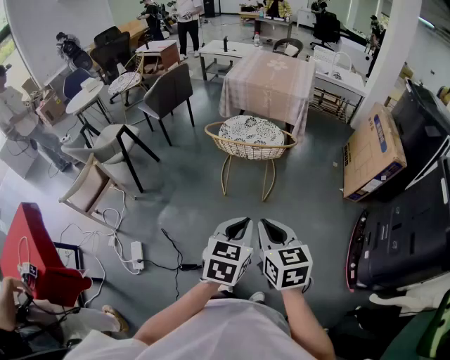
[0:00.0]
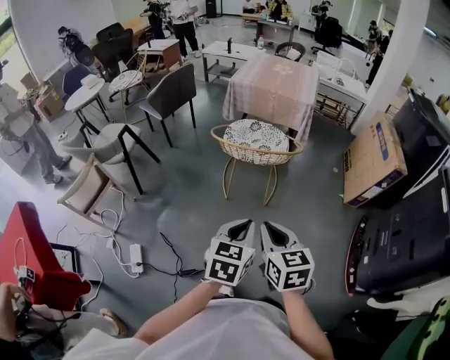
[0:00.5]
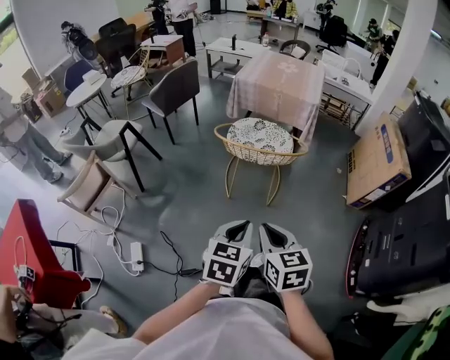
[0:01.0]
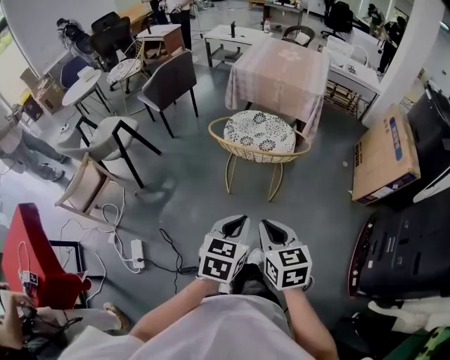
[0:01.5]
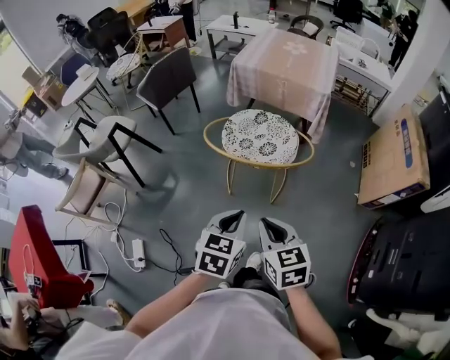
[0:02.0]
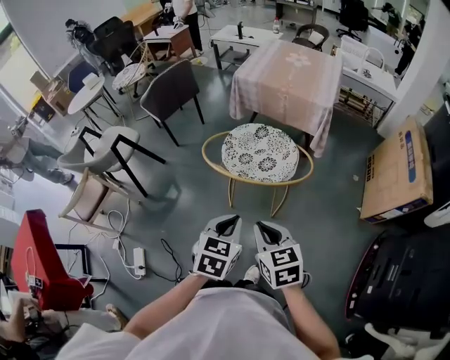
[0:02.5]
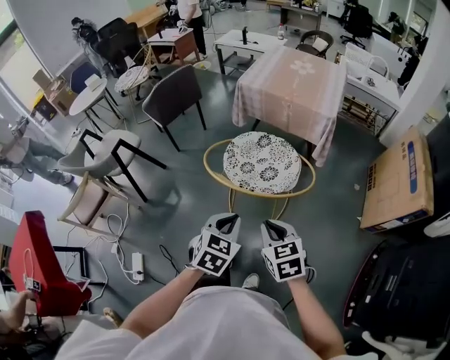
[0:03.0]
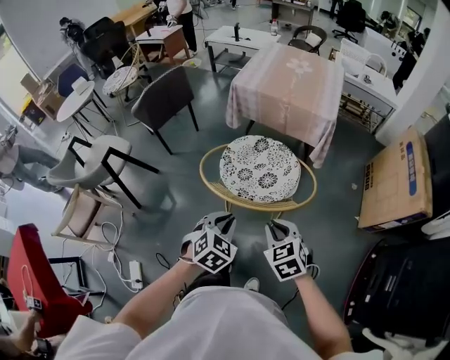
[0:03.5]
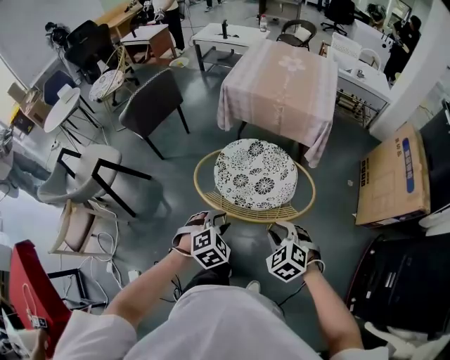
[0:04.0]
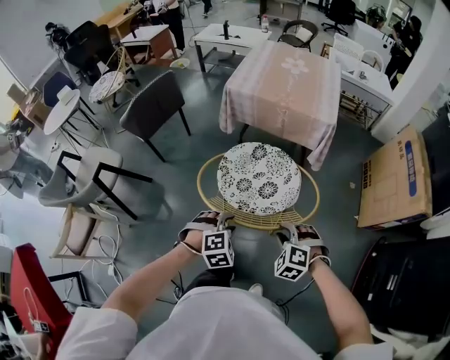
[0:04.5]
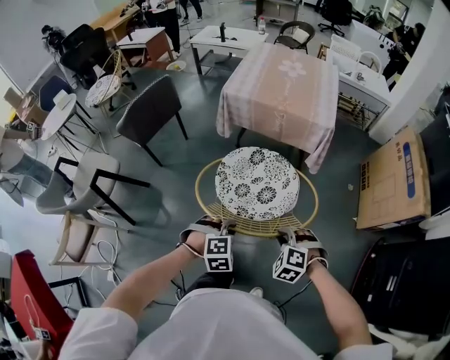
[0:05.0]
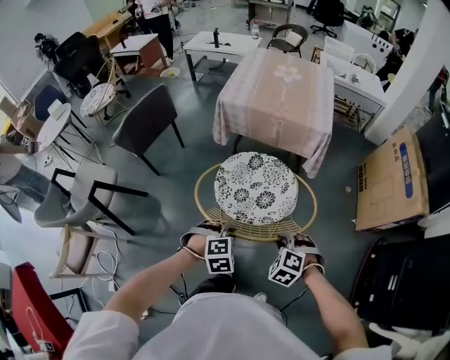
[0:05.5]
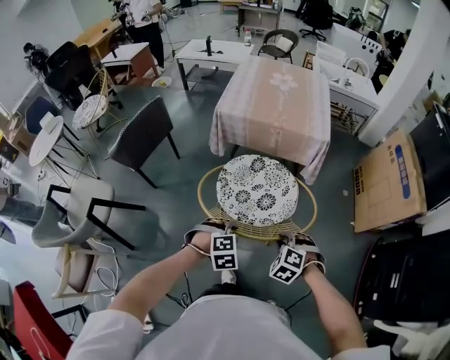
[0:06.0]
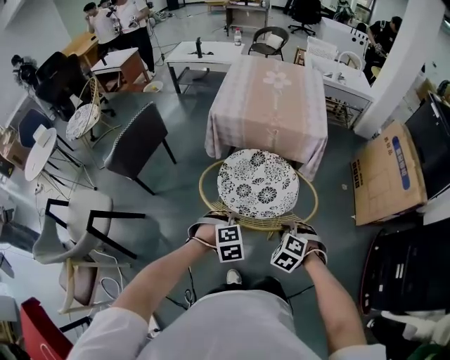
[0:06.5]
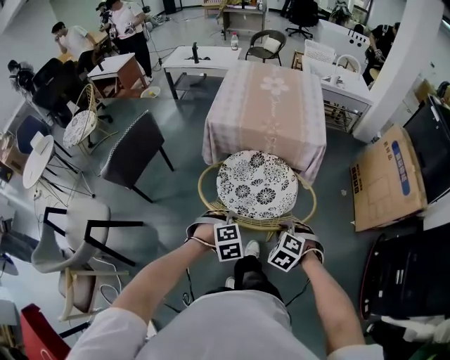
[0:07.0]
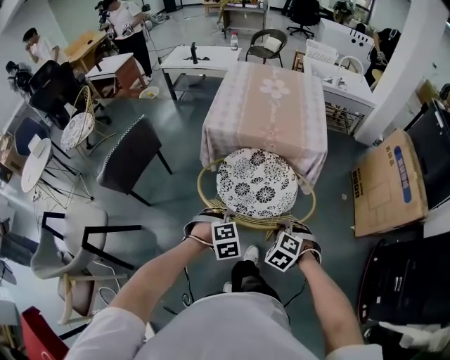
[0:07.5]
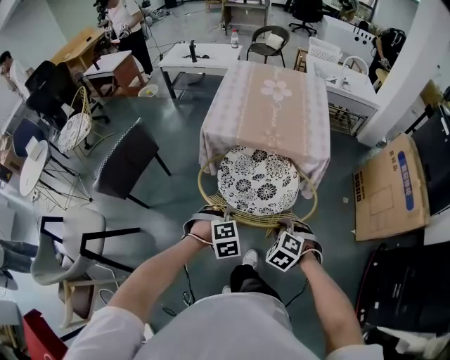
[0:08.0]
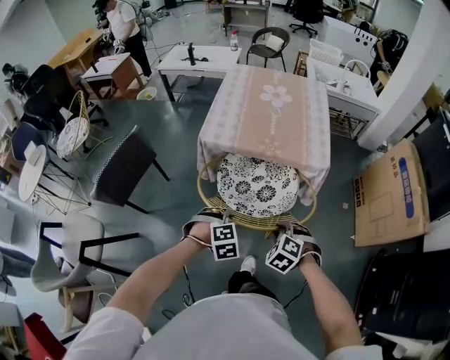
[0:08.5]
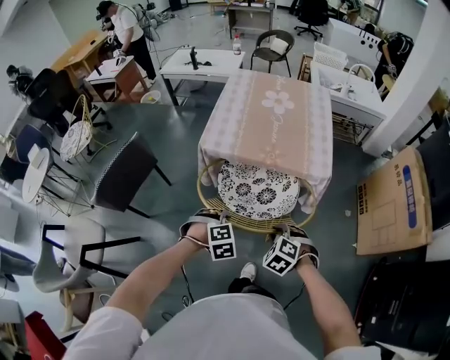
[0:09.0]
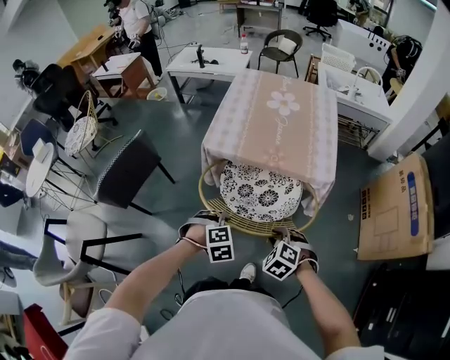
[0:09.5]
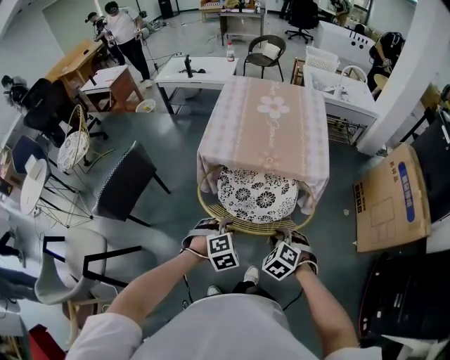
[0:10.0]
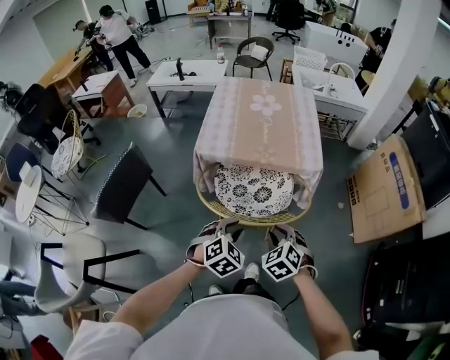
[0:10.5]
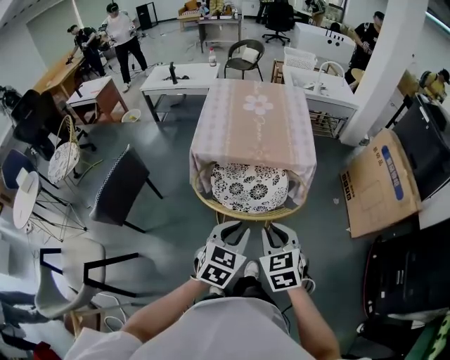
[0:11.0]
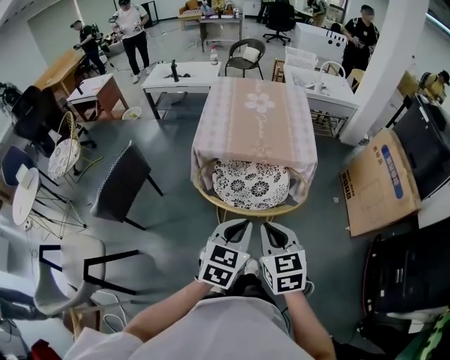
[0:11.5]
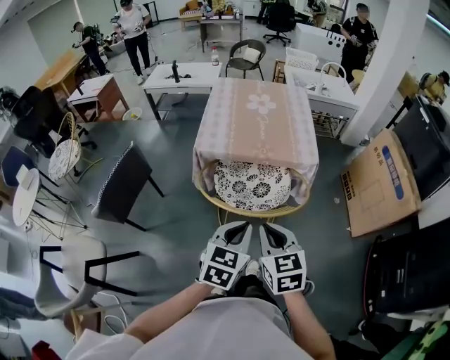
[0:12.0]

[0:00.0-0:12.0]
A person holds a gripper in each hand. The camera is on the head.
0:00.0 to 0:02.0: The grippers both shift forward by about 20 cm.
0:02.0 to 0:04.0: The grippers both shift forward and downward by some 20 cm. The right gripper turns by approximately 50 degrees, while the left gripper rolls clockwise, seen from behind, by roughly 50 degrees, and opens.
0:04.0 to 0:06.0: The two grippers go about 10 cm forward. The left gripper changes its angle by roughly 30 degrees.
0:06.0 to 0:08.0: The two grippers go some 20 cm forward.
0:08.0 to 0:10.0: Both grippers travel together forward, approximately 5 cm.
0:10.0 to 0:12.0: The two grippers go approximately 20 cm upward and backward. The left gripper angles its fingers upward, by some 30 degrees, and closes up. The right gripper rolls clockwise, seen from behind, by approximately 40 degrees, and closes up.

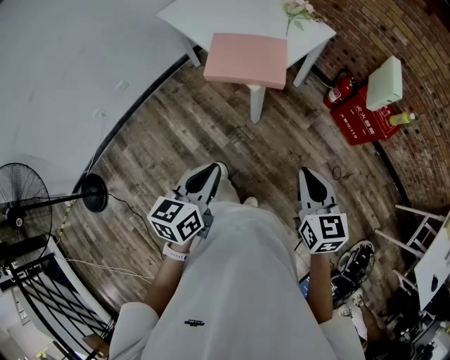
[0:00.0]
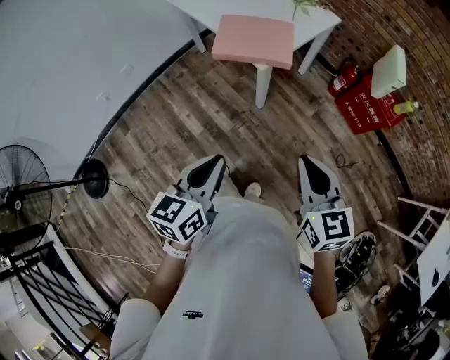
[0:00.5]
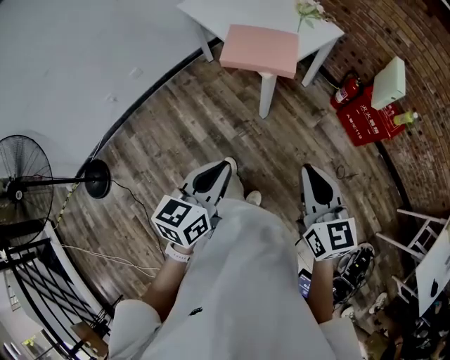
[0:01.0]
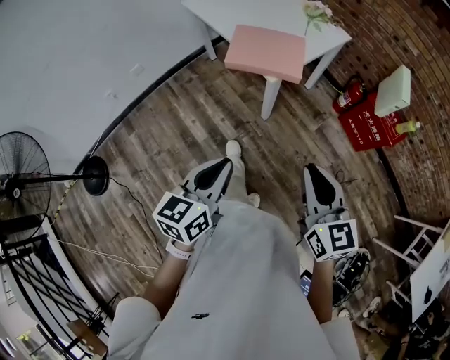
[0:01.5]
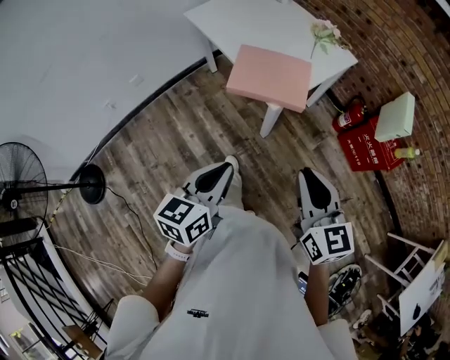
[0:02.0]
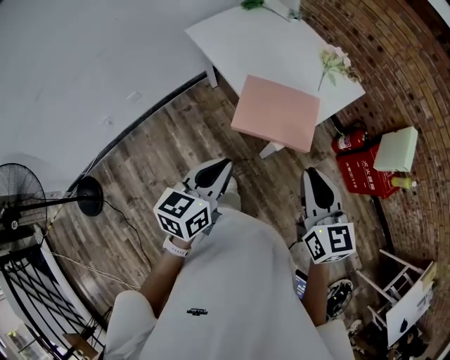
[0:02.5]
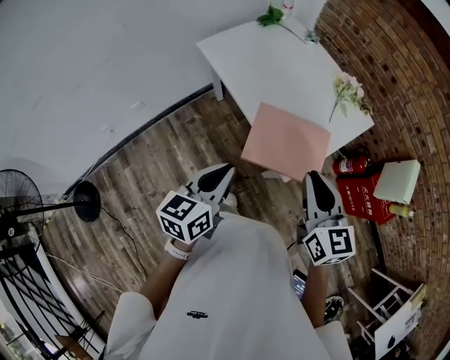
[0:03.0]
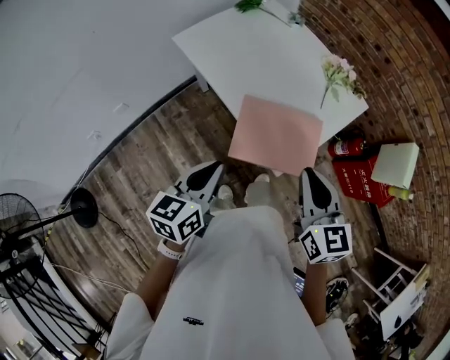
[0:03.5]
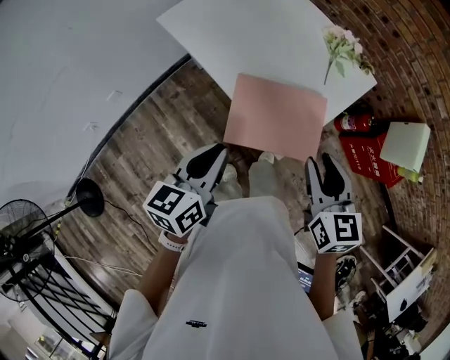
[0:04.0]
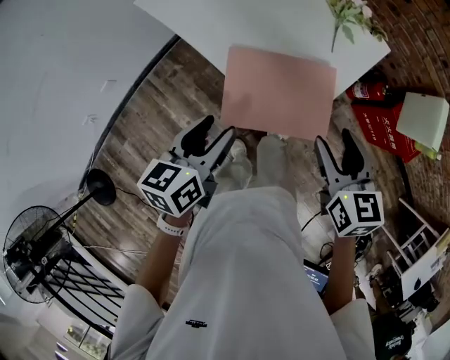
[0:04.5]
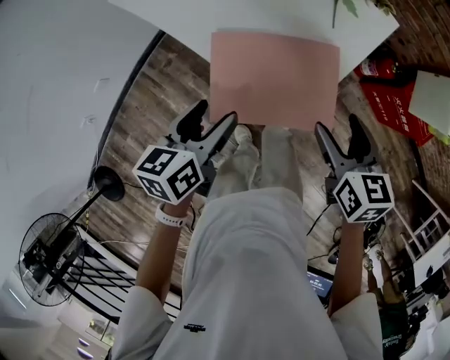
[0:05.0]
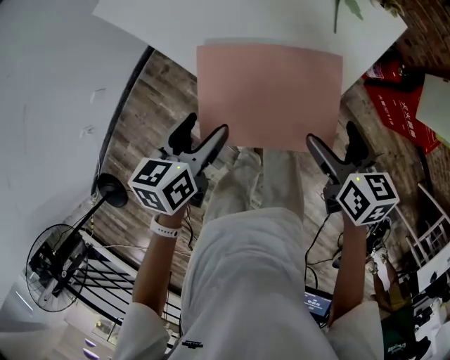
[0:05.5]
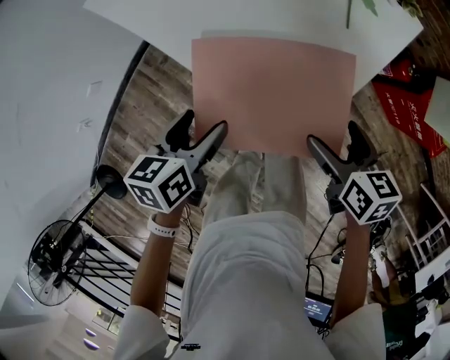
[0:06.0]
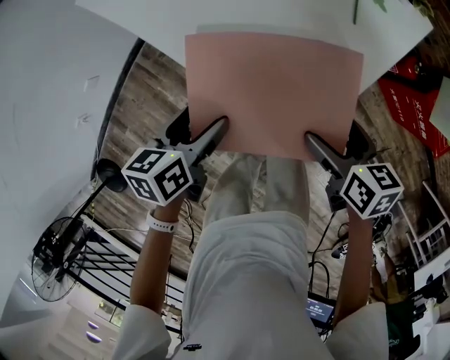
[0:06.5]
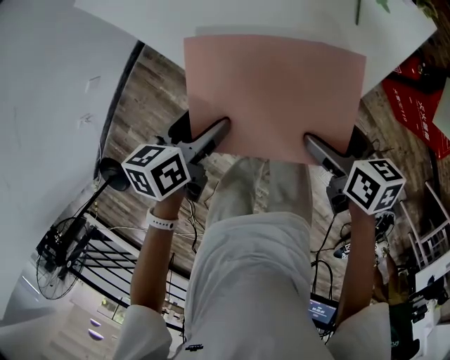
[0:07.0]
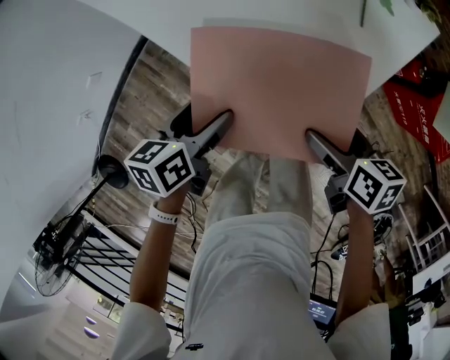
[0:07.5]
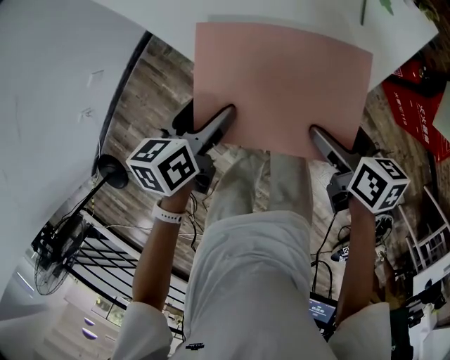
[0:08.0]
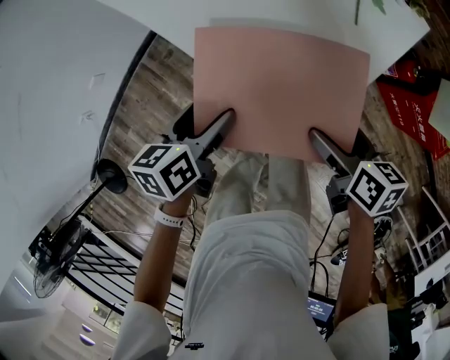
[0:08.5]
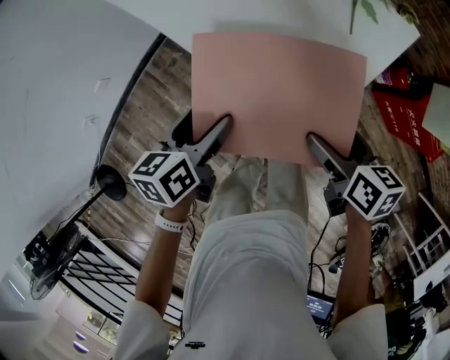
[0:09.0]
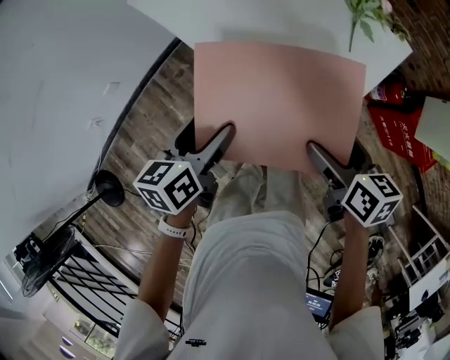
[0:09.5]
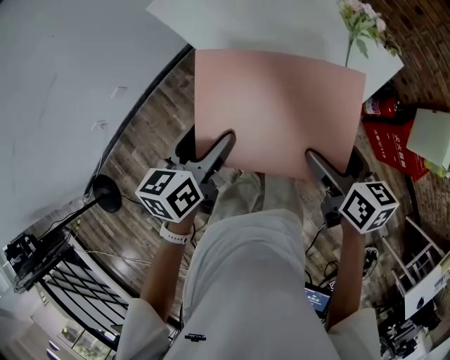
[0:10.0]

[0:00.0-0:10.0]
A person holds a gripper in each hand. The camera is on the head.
0:00.0 to 0:02.0: The right gripper goes about 10 cm upward, to the left and forward.
0:02.0 to 0:04.0: Both grippers travel together forward, roughly 30 cm.
0:04.0 to 0:06.0: The right gripper travels downward by approximately 20 cm, turns by about 30 degrees, and opens, while the left gripper shifts roughly 20 cm downward and forward, swivels some 20 degrees, and opens its fingers.
0:06.0 to 0:08.0: The grippers move only a little.
0:08.0 to 0:10.0: The left gripper goes some 15 cm upward and to the left, while the right gripper goes roughly 15 cm upward.

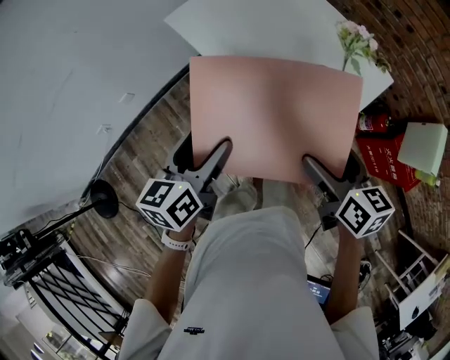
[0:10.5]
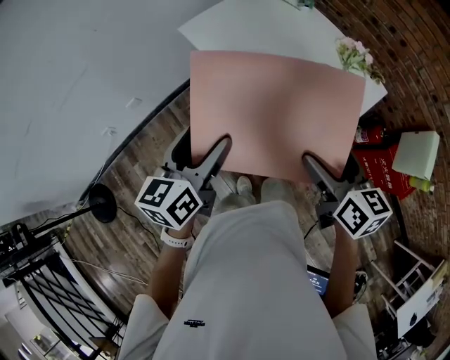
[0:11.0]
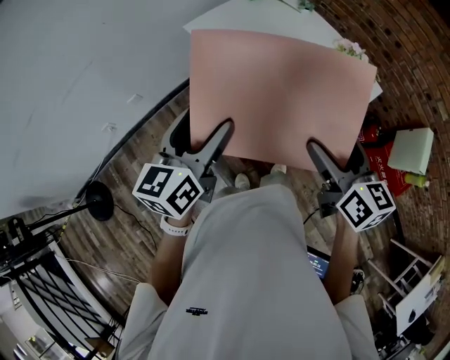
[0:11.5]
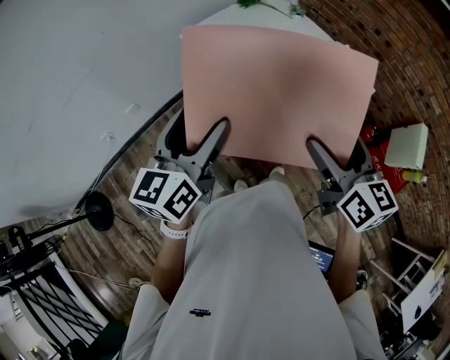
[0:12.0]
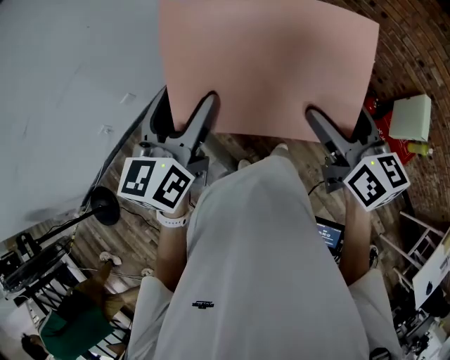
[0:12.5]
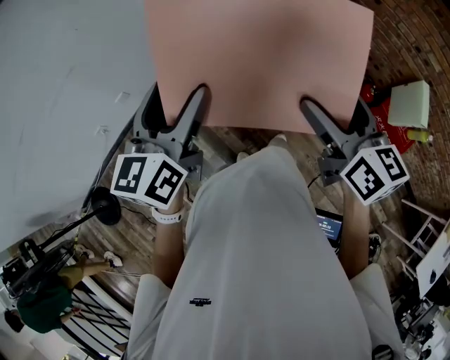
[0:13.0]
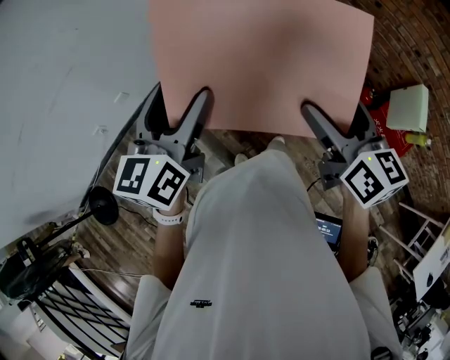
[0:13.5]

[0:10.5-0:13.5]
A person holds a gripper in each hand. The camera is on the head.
0:10.5 to 0:12.0: Both grippers travel together upward, roughly 15 cm.
0:12.0 to 0:13.5: The grippers make only small movements.

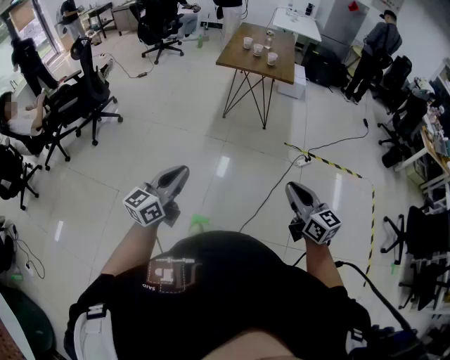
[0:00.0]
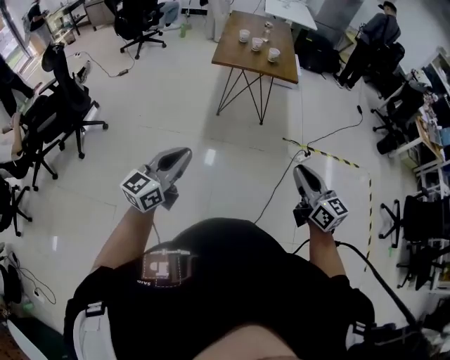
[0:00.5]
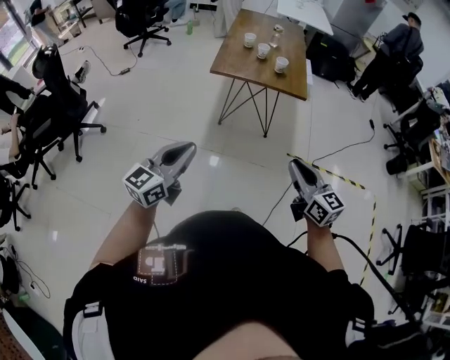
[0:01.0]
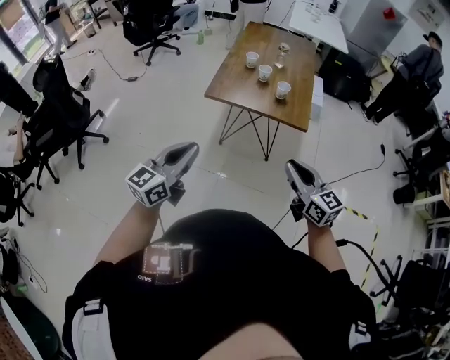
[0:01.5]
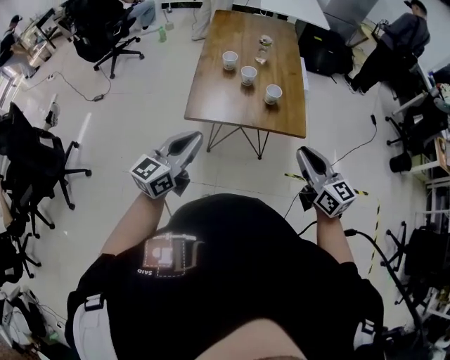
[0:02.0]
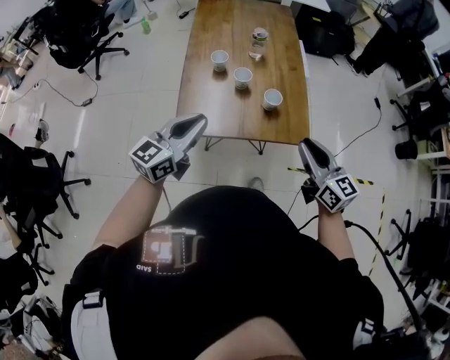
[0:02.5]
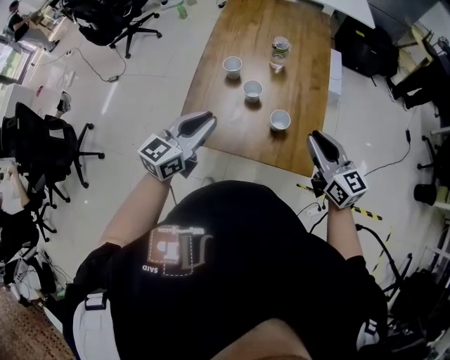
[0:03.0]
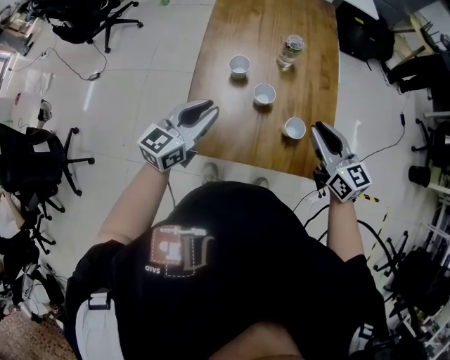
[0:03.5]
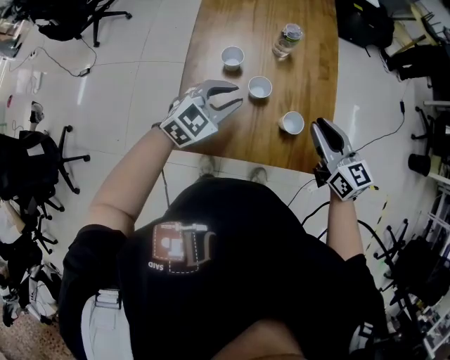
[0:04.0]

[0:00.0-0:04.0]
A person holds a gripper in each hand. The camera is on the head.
0:00.0 to 0:02.0: The two grippers travel together, forward, roughly 70 cm.
0:02.0 to 0:04.0: The grippers both shift forward by approximately 35 cm. The left gripper rotates about 40 degrees.
